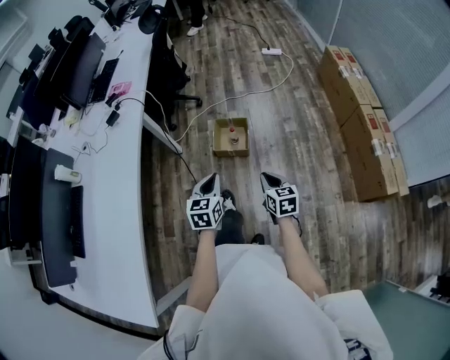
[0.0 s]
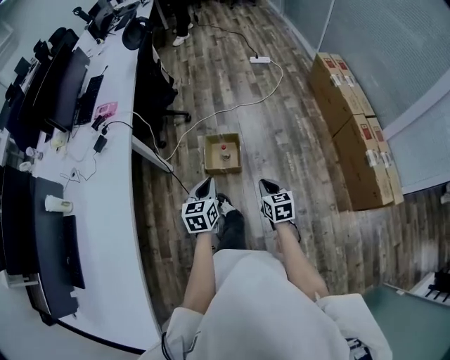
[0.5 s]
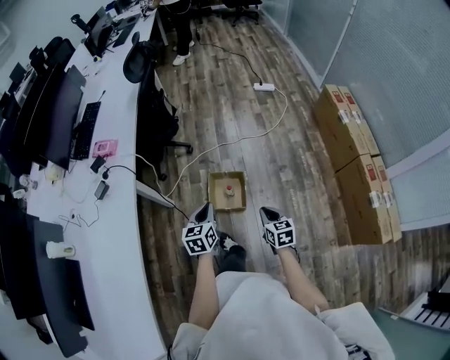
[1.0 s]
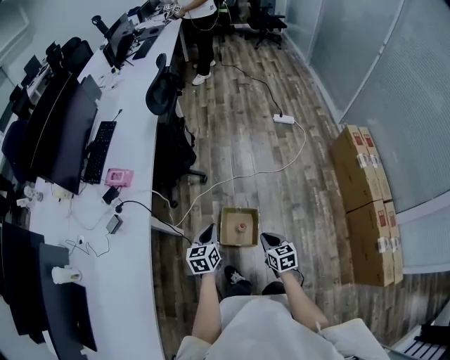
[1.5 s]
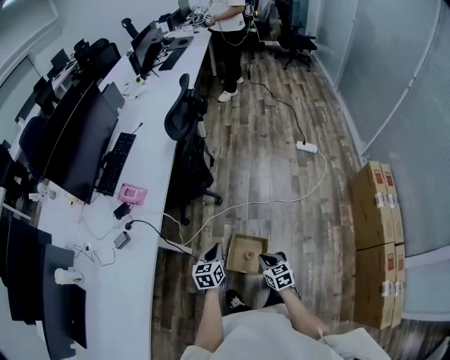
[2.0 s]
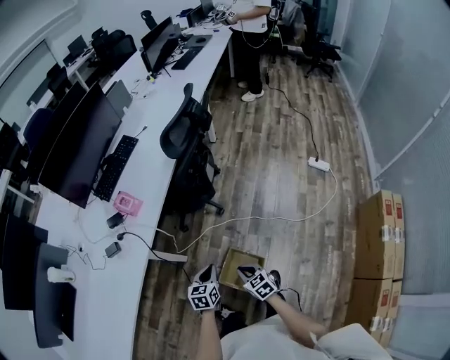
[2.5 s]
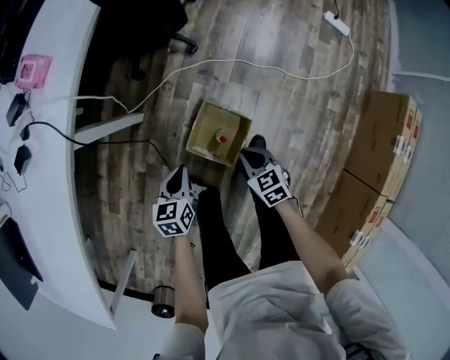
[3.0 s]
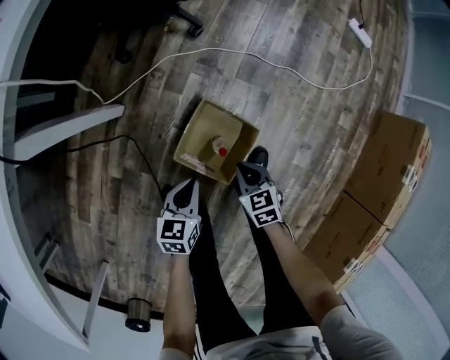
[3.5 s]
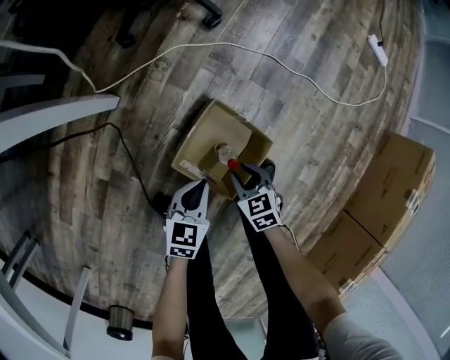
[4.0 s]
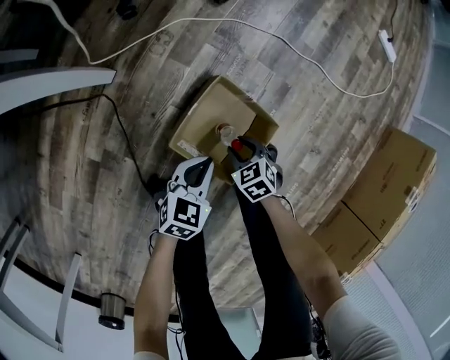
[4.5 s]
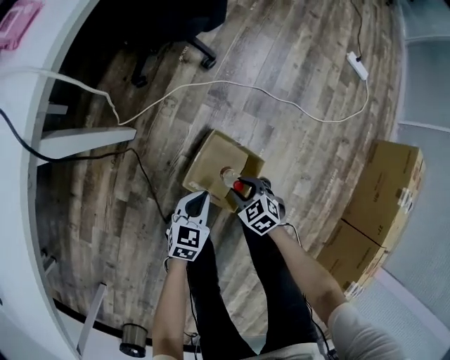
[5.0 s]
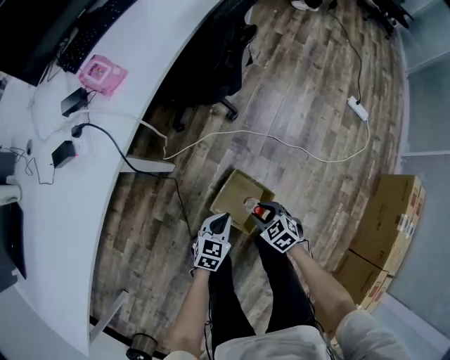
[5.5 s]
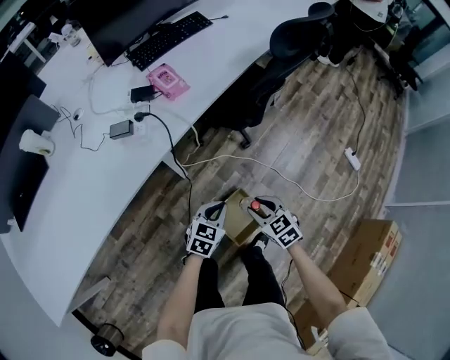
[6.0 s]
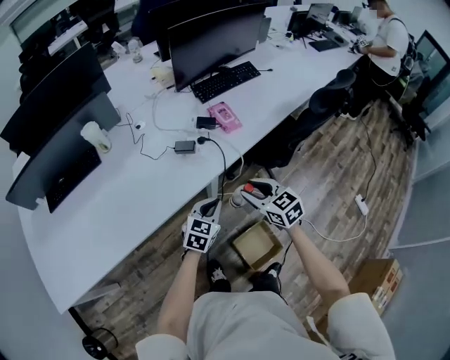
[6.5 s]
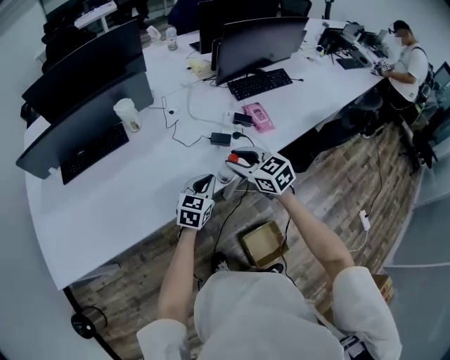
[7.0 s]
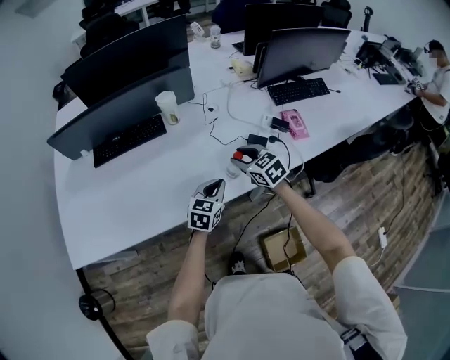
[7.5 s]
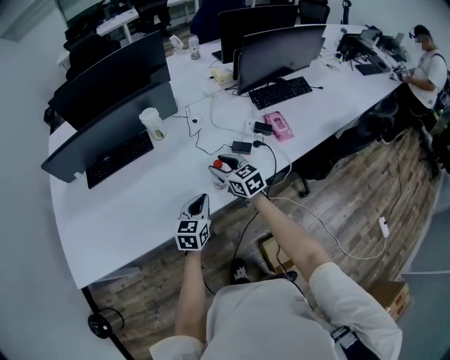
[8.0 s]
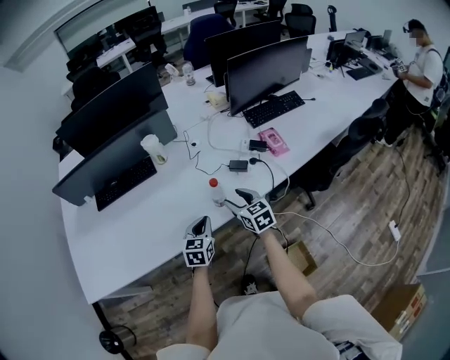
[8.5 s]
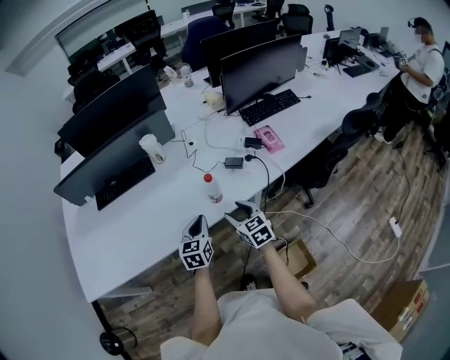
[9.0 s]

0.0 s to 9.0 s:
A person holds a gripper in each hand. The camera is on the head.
0.0 to 2.0 s: Both grippers are carried forward, roughly 60 cm. The right gripper changes its angle by about 20 degrees.
2.0 to 4.5 s: Both grippers move downward, approximately 60 cm. The left gripper rotates approximately 20 degrees, while the right gripper rotates roughly 50 degrees, and opens.
4.5 to 7.0 s: Both grippers are carried some 50 cm. The two grippers go about 70 cm upward. The left gripper rotates some 50 degrees, while the right gripper tilts its fingers about 40 degrees upward.
7.0 to 9.0 s: The left gripper is displaced to the left and backward by about 10 cm, and swivels approximately 20 degrees. The right gripper shifts about 10 cm backward and downward.

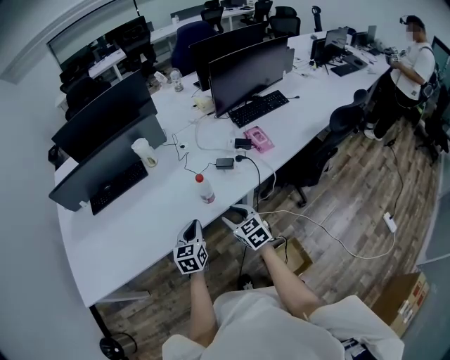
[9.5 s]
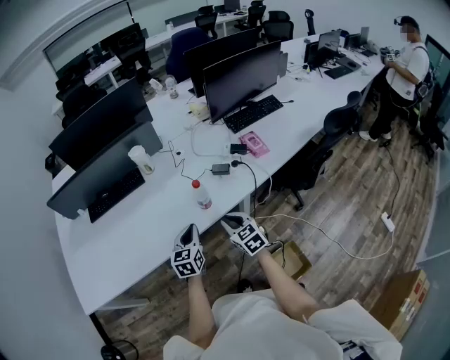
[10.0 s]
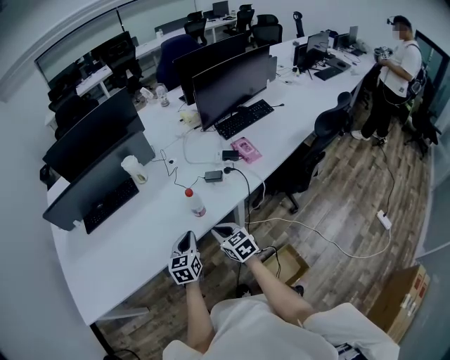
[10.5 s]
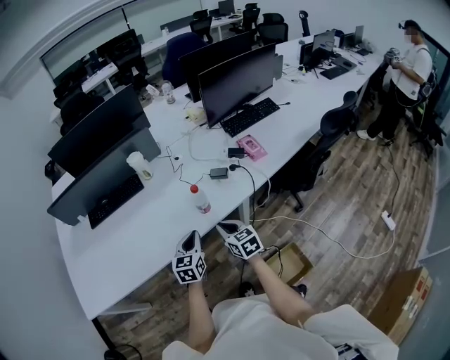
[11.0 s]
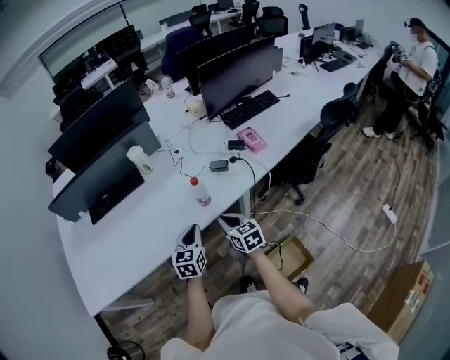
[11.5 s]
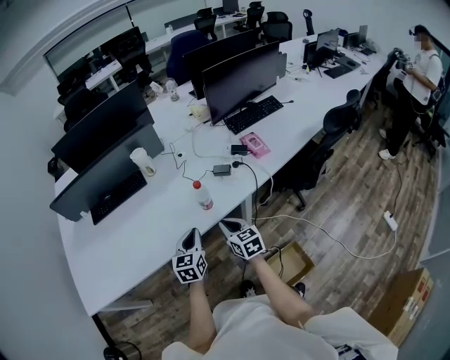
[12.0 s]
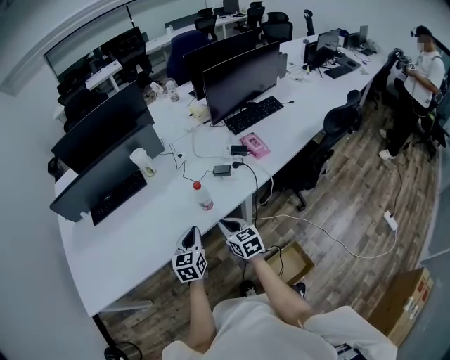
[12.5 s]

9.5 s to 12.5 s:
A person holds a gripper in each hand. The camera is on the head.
9.5 to 11.0 s: The right gripper closes.
11.0 to 12.5 s: The grippers stay close to where they were, moving slightly.

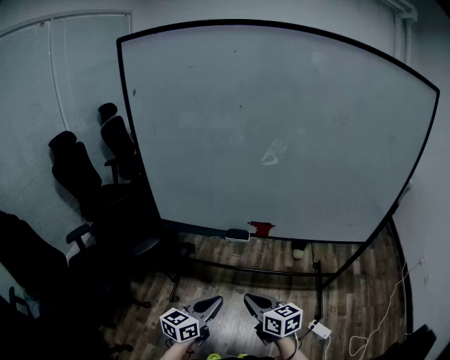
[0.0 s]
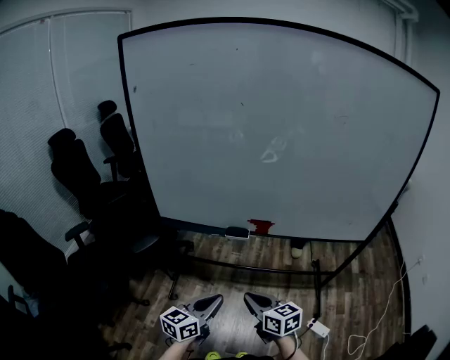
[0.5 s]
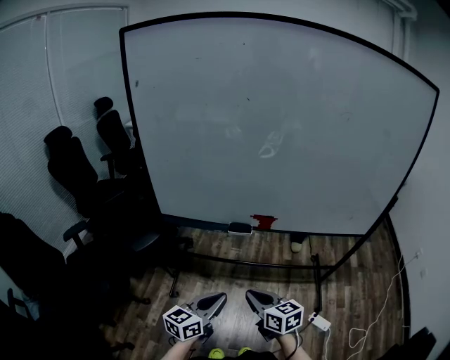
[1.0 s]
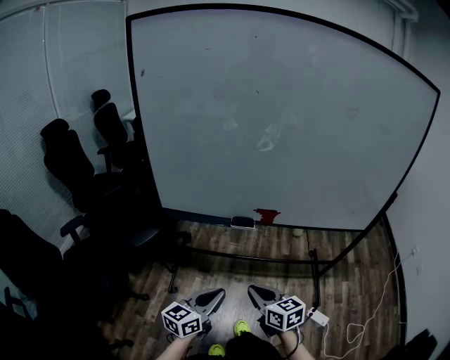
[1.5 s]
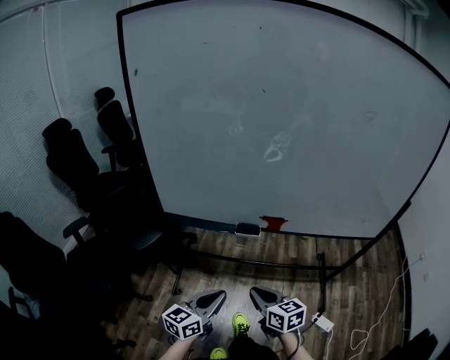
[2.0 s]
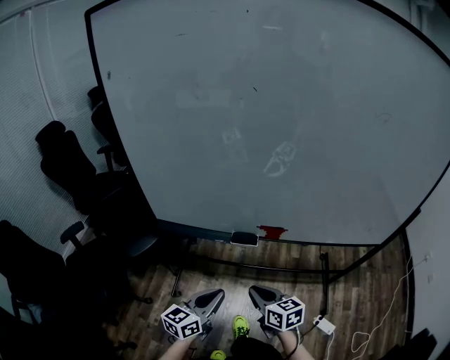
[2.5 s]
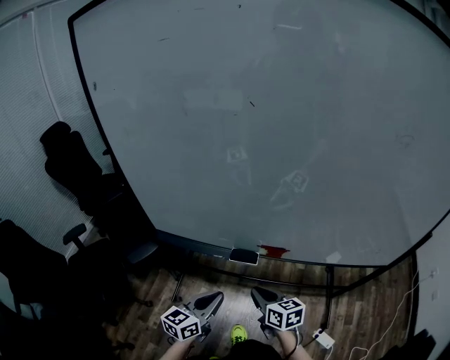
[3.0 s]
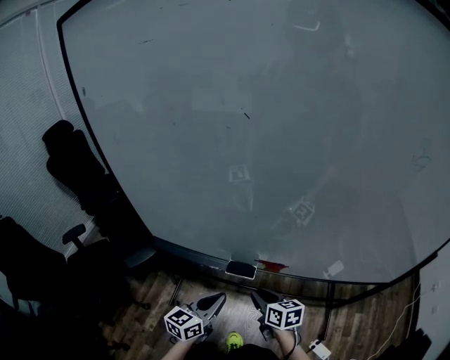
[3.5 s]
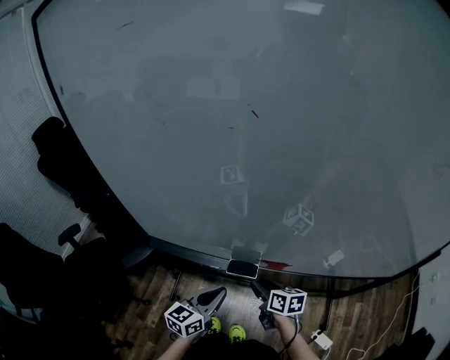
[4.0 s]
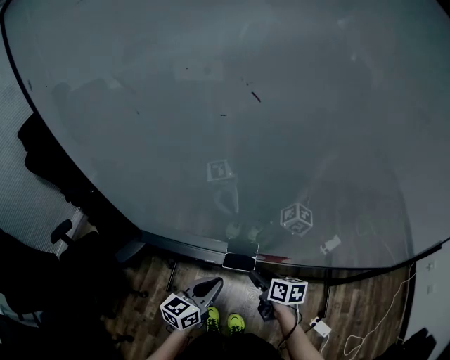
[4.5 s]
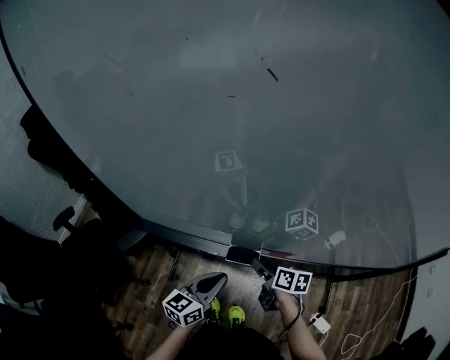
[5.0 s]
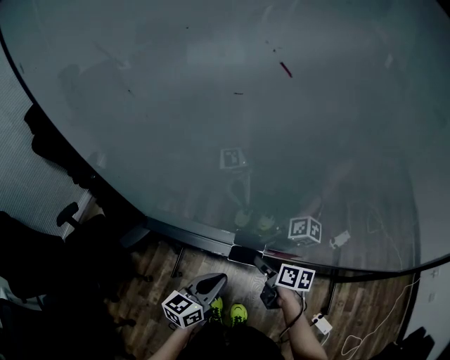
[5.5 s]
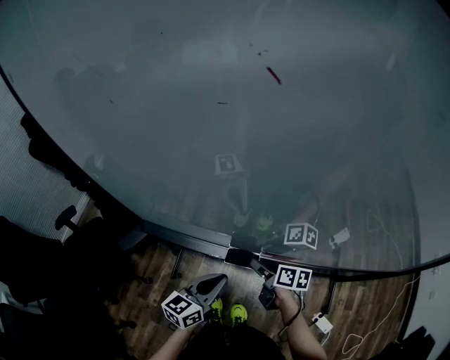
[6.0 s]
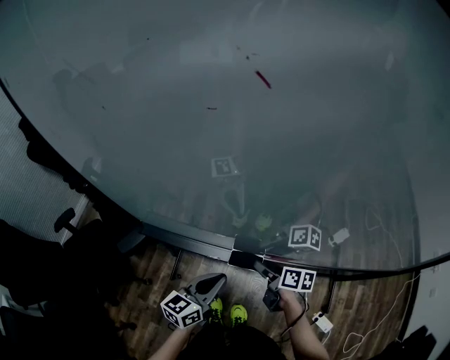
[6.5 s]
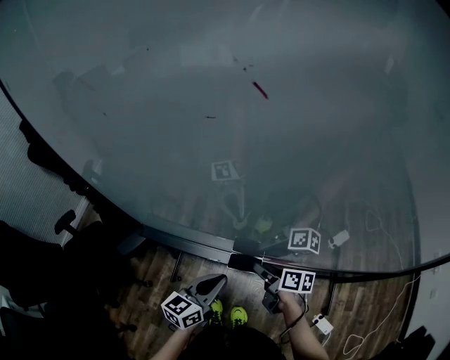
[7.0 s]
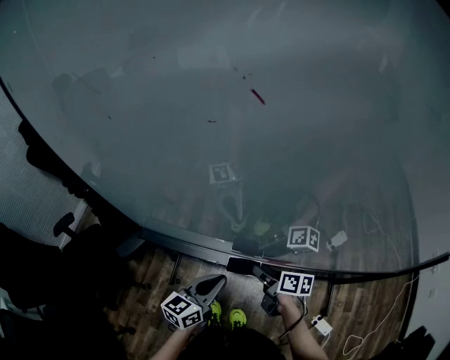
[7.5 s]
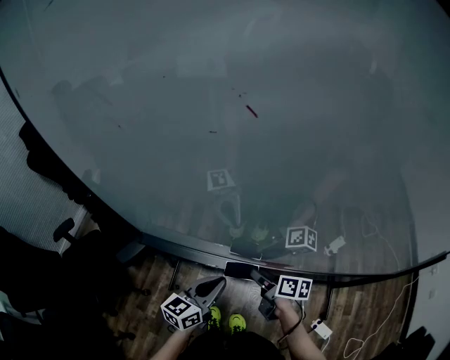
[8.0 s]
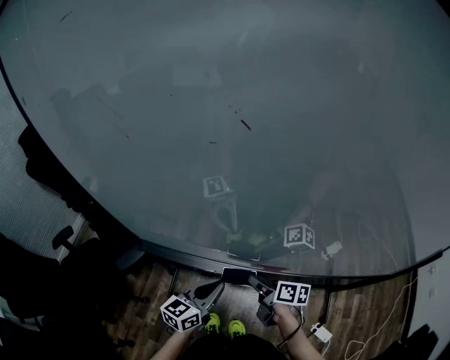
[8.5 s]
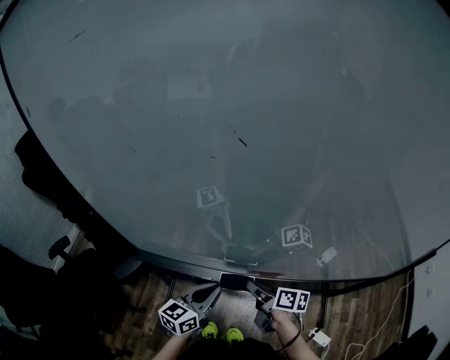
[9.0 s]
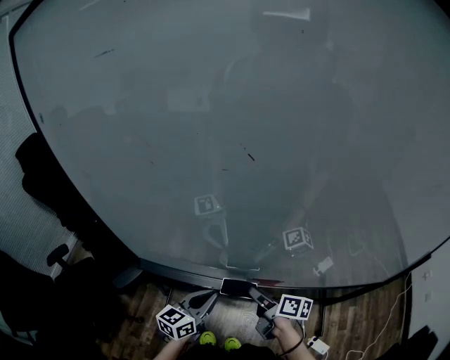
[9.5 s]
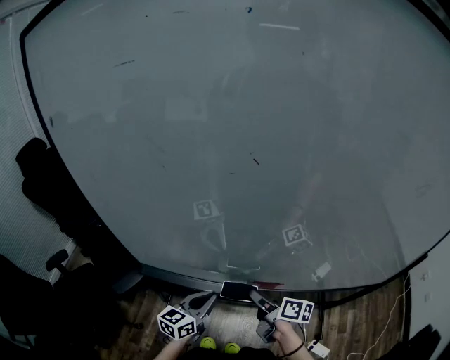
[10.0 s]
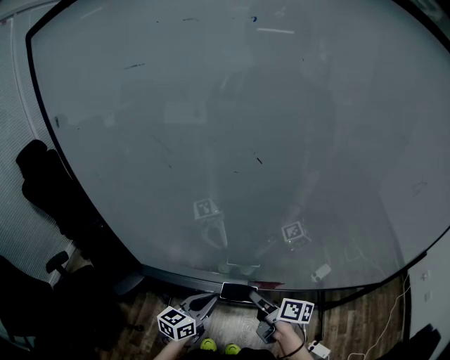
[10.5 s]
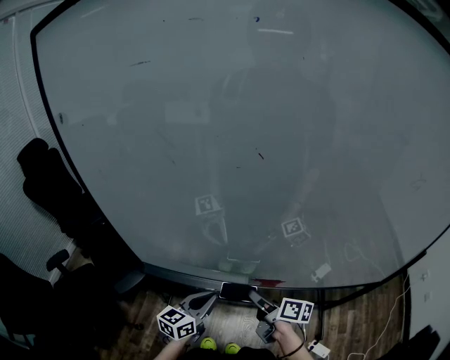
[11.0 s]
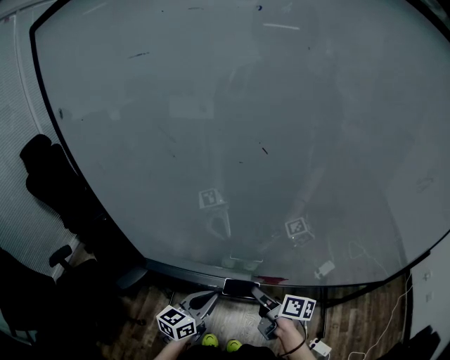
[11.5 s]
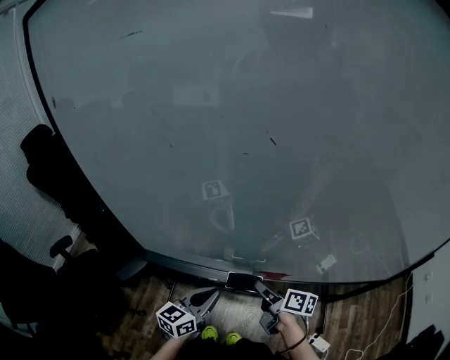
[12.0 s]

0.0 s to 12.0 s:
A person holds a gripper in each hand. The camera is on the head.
0.0 to 2.0 s: The grippers stay close to where they were, moving slightly.
2.0 to 4.0 s: The two grippers go approximately 20 cm forward. The right gripper swivels approximately 20 degrees, and opens.
4.0 to 6.0 s: The right gripper shifts by some 5 cm, turns by roughly 20 degrees, and opens.
6.0 to 8.0 s: The right gripper closes its fingers.
8.0 to 10.0 s: The right gripper heads upward, covering about 10 cm.
10.0 to 12.0 s: There are only small adjustments of the grippers.

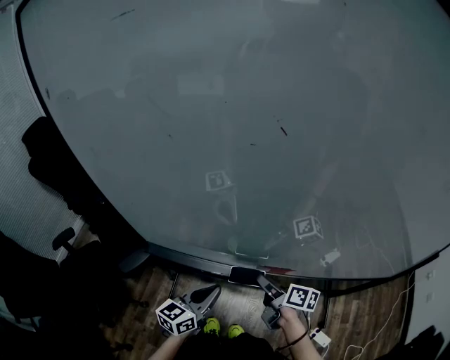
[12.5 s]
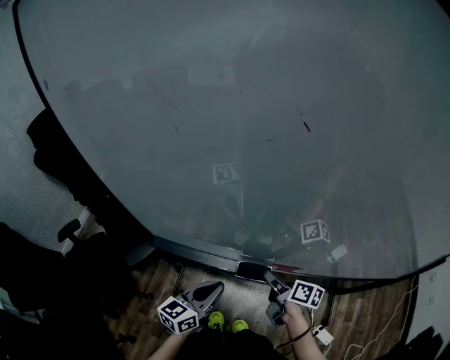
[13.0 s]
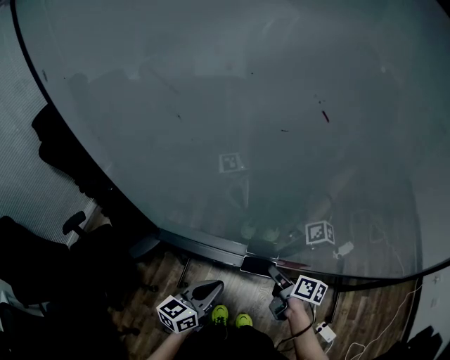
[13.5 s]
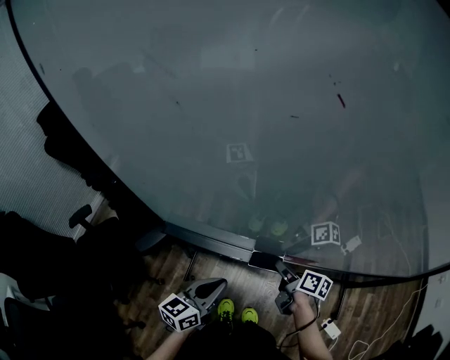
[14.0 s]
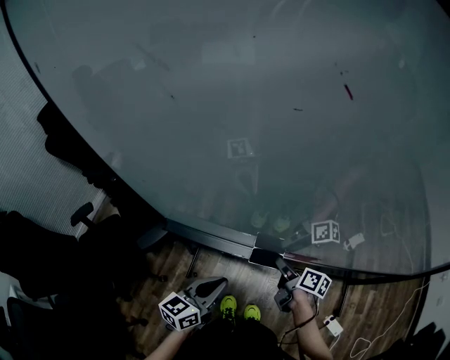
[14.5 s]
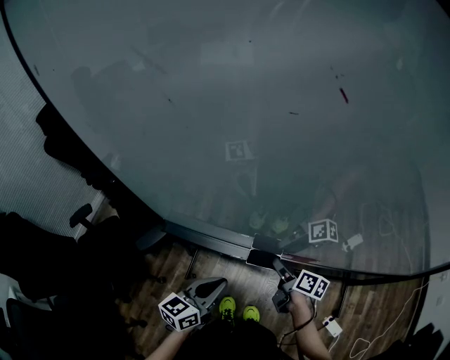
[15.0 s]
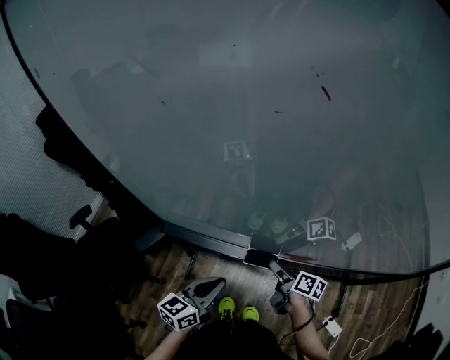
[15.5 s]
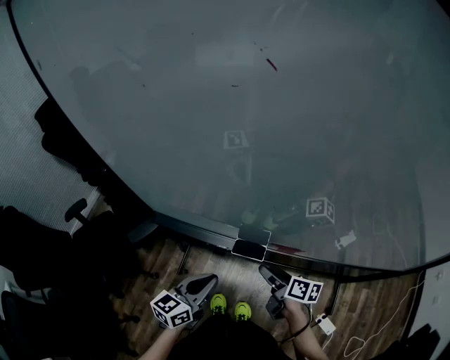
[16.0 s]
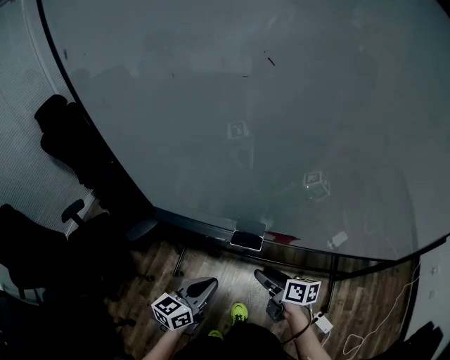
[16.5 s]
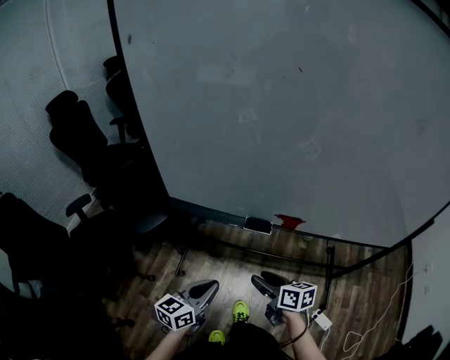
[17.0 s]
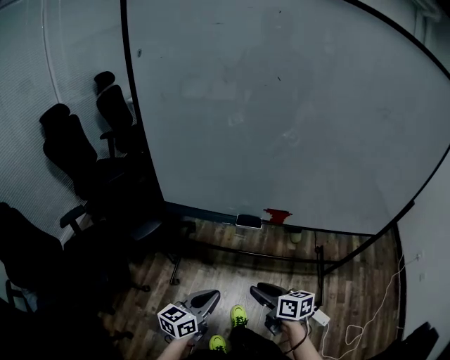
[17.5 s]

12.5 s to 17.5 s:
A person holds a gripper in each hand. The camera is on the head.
12.5 to 15.0 s: The right gripper travels downward by about 10 cm.
15.0 to 17.5 s: The two grippers go approximately 20 cm backward. The right gripper changes its angle by approximately 30 degrees.
